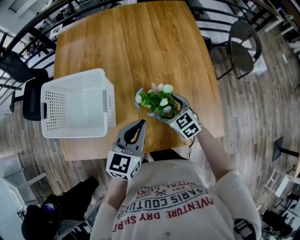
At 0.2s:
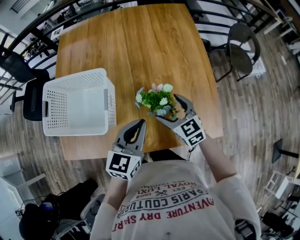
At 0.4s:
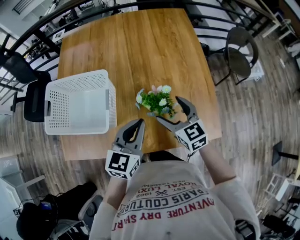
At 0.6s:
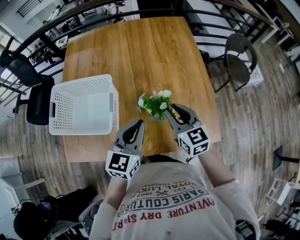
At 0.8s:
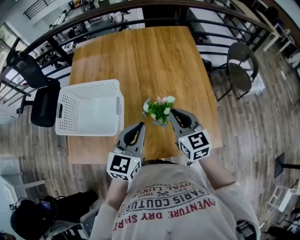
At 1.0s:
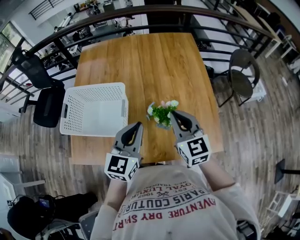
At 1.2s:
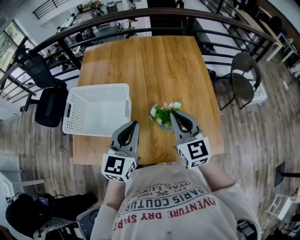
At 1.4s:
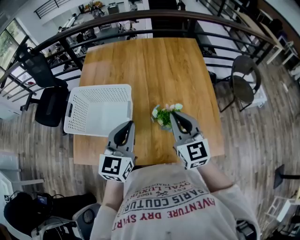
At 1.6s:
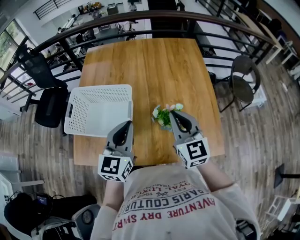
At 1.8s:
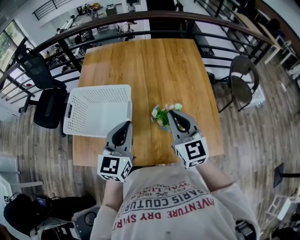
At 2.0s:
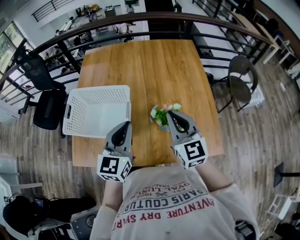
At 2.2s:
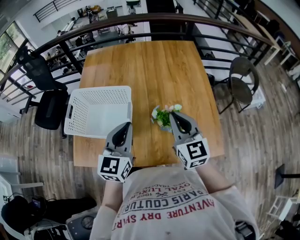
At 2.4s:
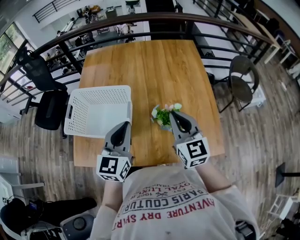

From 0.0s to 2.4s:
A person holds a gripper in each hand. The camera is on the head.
From 0.0s to 1.2s: The right gripper shifts some 25 cm upward, turns by approximately 30 degrees, and closes; the left gripper moves upward and to the left, some 15 cm.
From 1.2s to 2.4s: The grippers move only a little.

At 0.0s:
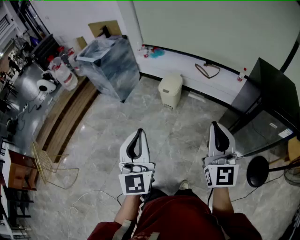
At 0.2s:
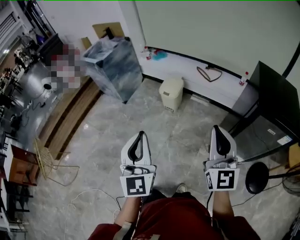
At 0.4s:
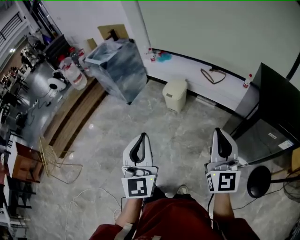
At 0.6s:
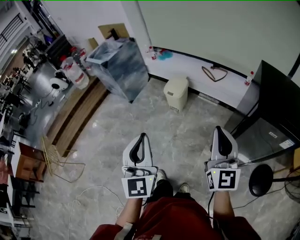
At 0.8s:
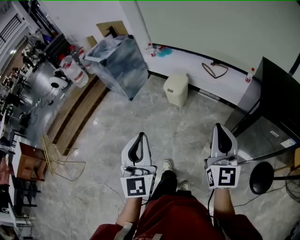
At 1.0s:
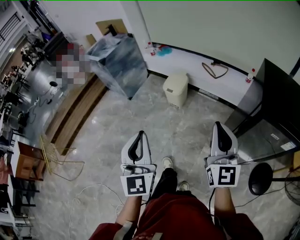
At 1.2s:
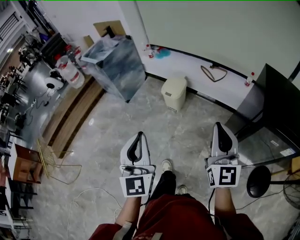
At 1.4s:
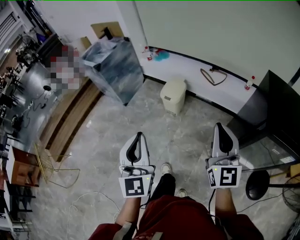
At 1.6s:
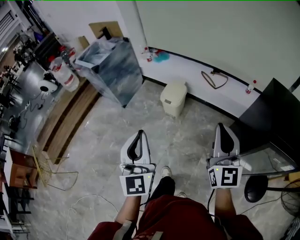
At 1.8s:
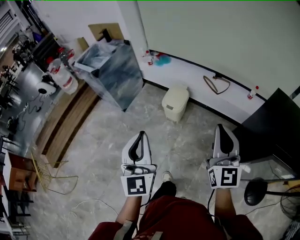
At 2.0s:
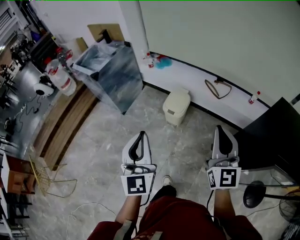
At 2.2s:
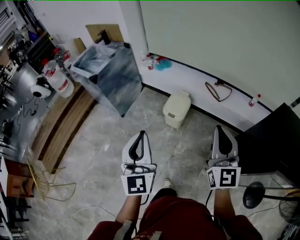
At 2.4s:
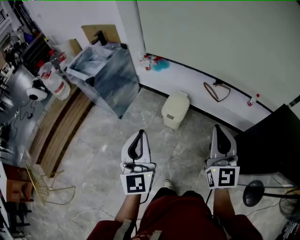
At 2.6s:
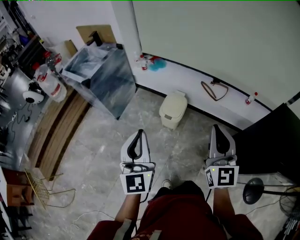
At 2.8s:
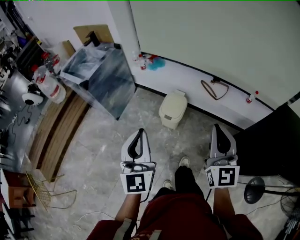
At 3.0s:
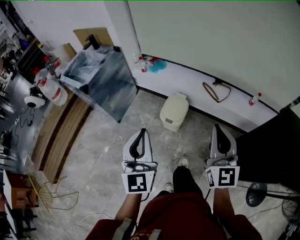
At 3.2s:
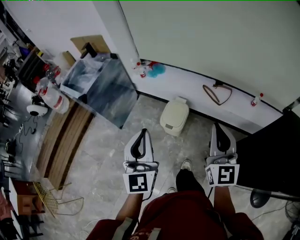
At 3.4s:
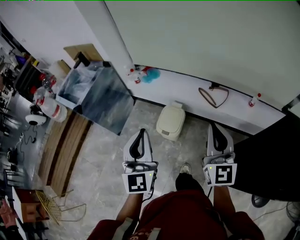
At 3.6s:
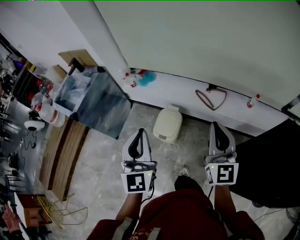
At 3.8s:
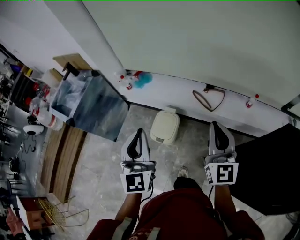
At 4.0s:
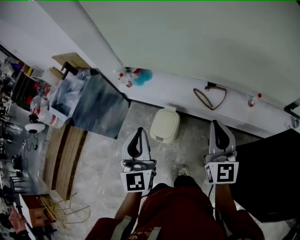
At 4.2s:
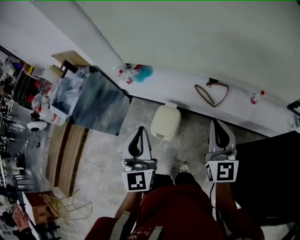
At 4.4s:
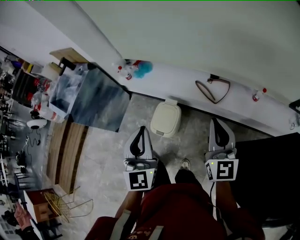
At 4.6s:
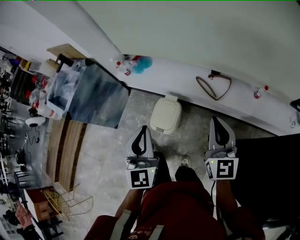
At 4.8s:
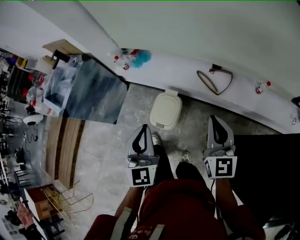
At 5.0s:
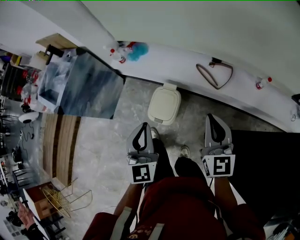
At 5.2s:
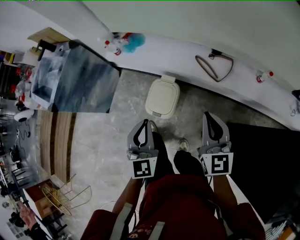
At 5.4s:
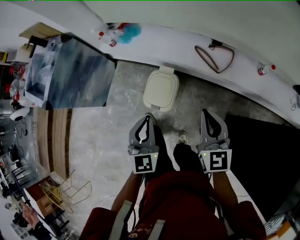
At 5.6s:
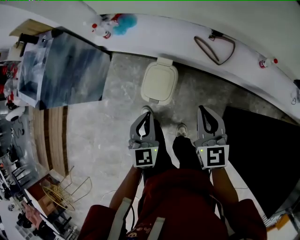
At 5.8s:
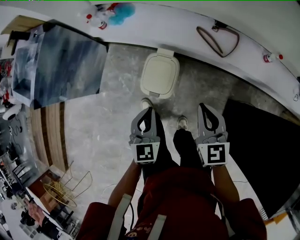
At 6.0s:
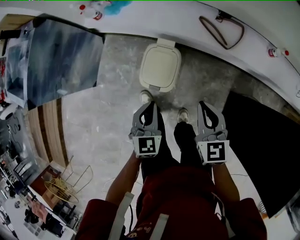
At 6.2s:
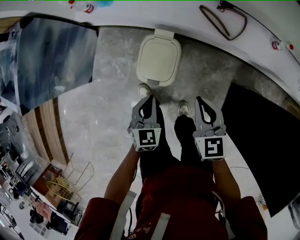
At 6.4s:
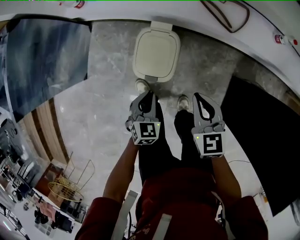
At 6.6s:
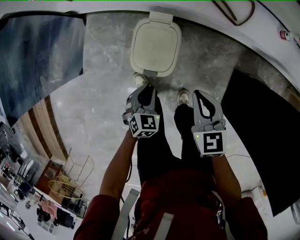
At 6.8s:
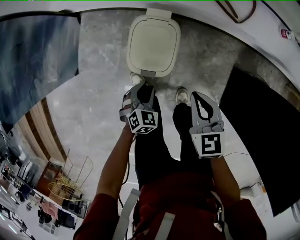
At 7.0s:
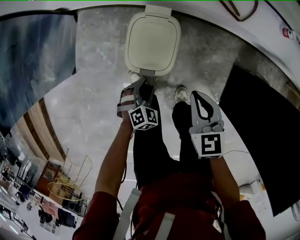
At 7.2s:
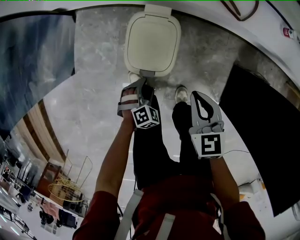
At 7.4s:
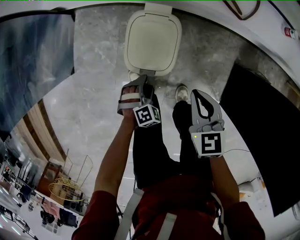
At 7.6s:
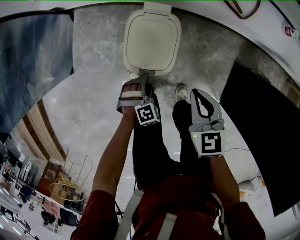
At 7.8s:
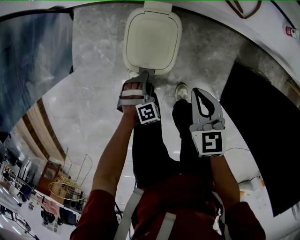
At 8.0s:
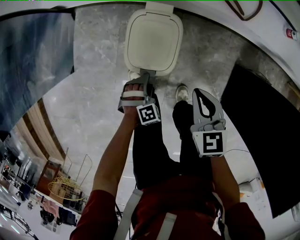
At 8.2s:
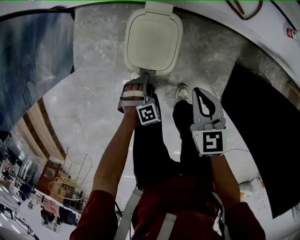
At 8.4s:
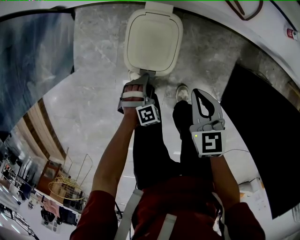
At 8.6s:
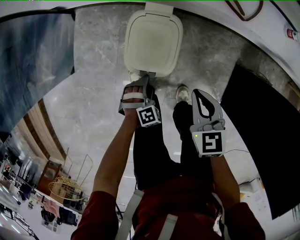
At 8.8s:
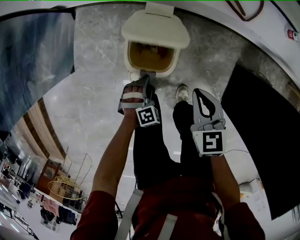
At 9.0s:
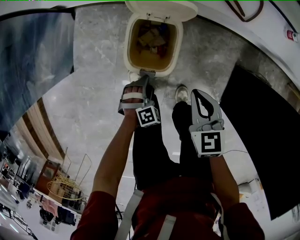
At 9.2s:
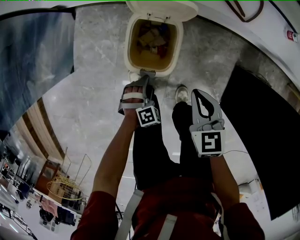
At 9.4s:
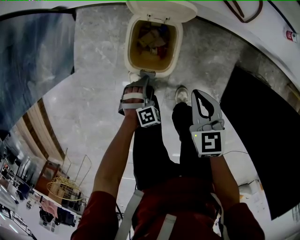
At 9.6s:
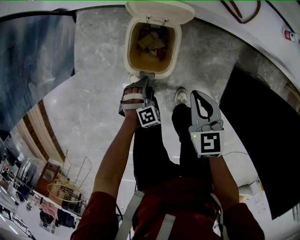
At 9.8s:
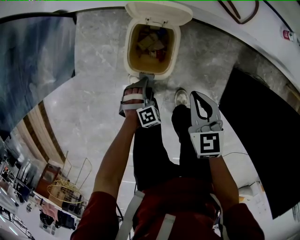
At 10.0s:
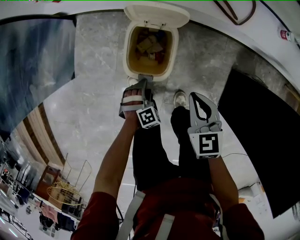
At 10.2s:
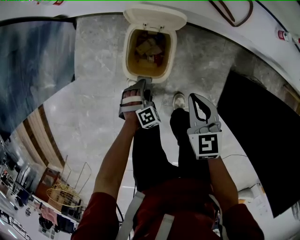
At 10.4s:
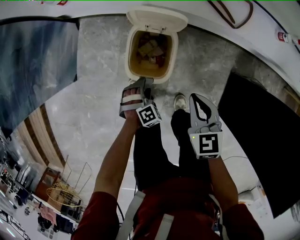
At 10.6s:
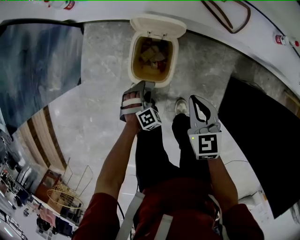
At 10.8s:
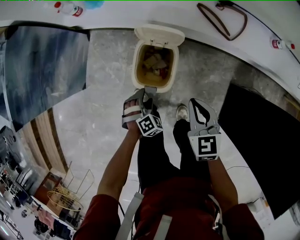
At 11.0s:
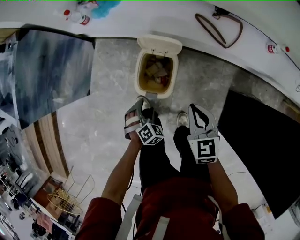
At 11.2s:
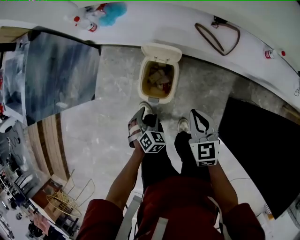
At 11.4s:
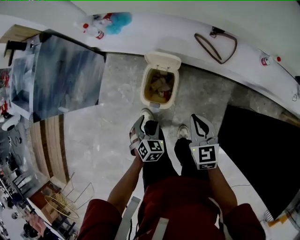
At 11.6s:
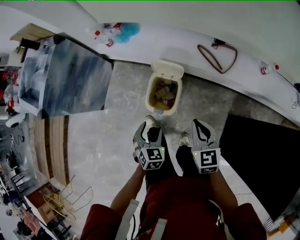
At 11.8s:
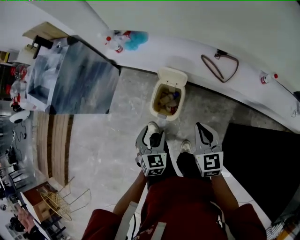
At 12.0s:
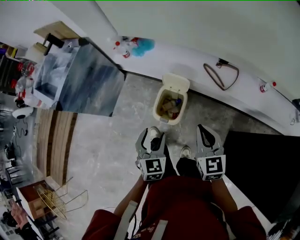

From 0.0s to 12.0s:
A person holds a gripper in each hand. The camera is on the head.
From 0.0s to 1.6s: The right gripper heads forward and to the right, covering some 15 cm, while the left gripper moves forward, approximately 15 cm.
From 1.6s to 3.0s: Both grippers travel together forward, roughly 25 cm.
From 3.0s to 4.4s: The grippers both shift forward and to the right by approximately 25 cm.
From 4.4s to 6.0s: The right gripper is displaced downward and to the left by approximately 30 cm, and turns by about 30 degrees. Meanwhile the left gripper travels downward by some 35 cm, and tips its fingers downward by roughly 30 degrees.
From 6.0s to 7.6s: The right gripper shifts some 15 cm downward. Meanwhile the left gripper moves downward, some 30 cm, rolls clockwise, seen from behind, by about 50 degrees, and opens its fingers.
From 7.6s to 10.4s: The grippers stay close to where they were, moving slightly.
From 10.4s to 12.0s: The right gripper moves upward, approximately 25 cm, and swivels about 20 degrees. Meanwhile the left gripper moves upward, roughly 40 cm, and twists roughly 50 degrees counterclockwise, seen from behind.

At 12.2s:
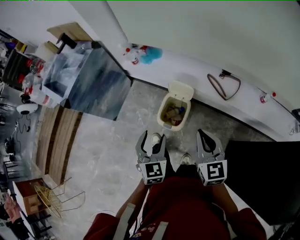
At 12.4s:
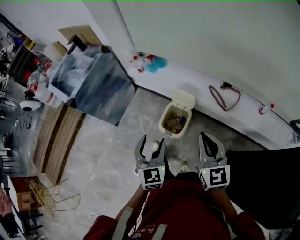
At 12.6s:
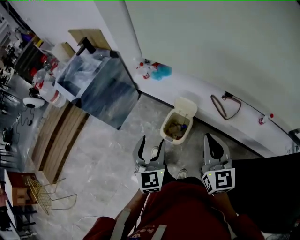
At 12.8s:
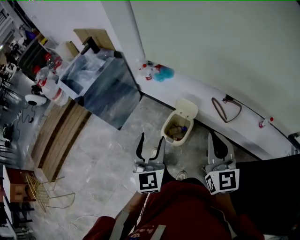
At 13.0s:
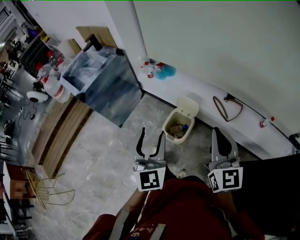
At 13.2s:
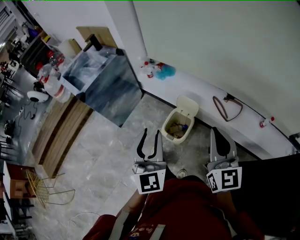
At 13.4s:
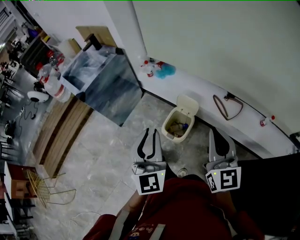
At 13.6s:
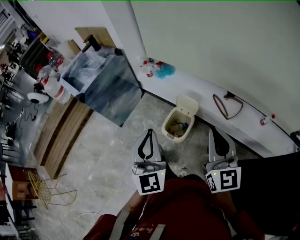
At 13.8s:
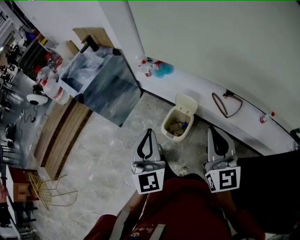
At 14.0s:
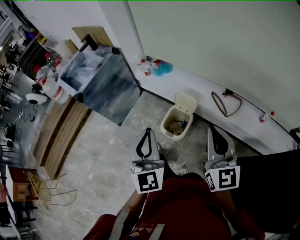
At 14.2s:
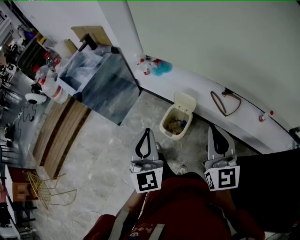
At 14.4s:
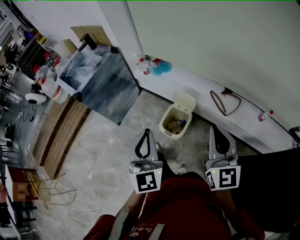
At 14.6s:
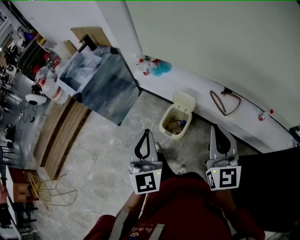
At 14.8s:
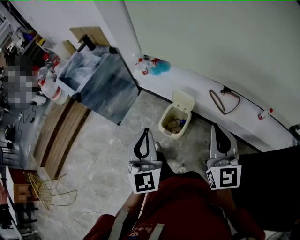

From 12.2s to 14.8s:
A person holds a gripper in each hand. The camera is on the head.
From 12.2s to 13.4s: The two grippers go roughly 20 cm upward. The left gripper rotates roughly 30 degrees, and closes.
From 13.4s to 14.8s: The grippers move only a little.

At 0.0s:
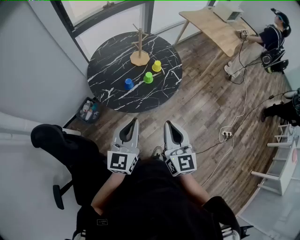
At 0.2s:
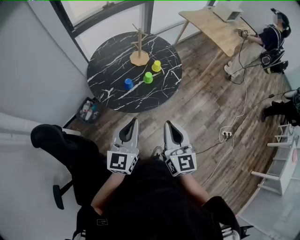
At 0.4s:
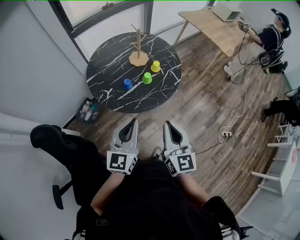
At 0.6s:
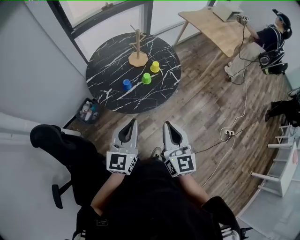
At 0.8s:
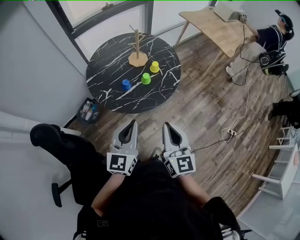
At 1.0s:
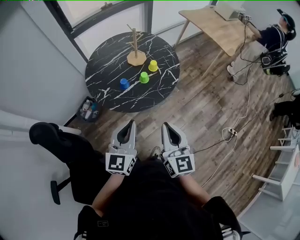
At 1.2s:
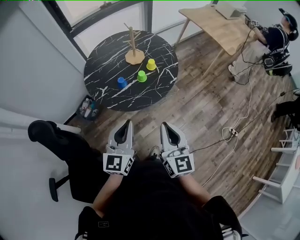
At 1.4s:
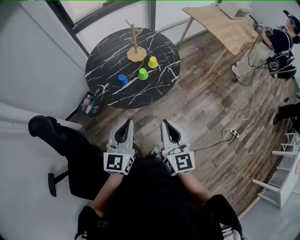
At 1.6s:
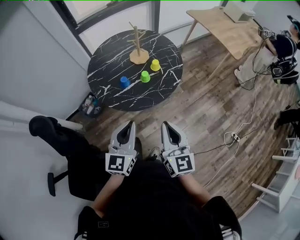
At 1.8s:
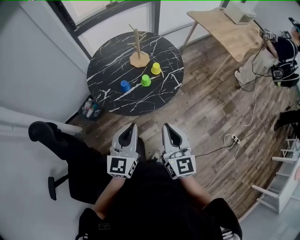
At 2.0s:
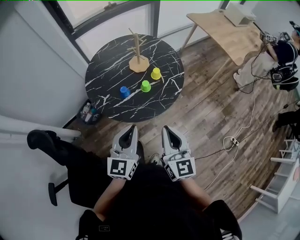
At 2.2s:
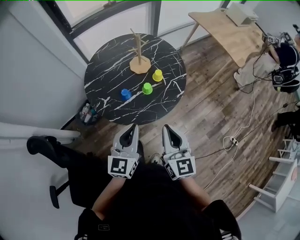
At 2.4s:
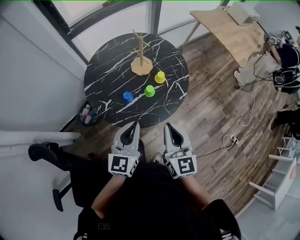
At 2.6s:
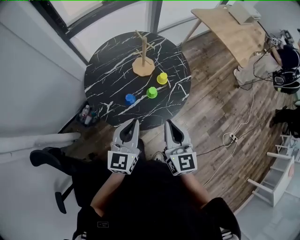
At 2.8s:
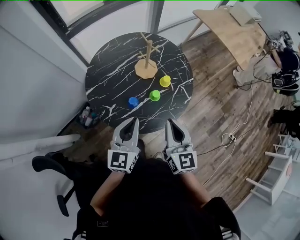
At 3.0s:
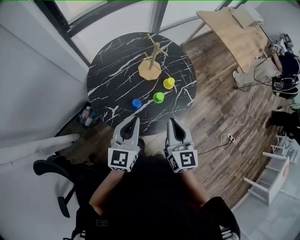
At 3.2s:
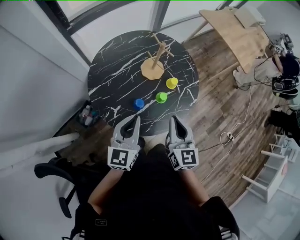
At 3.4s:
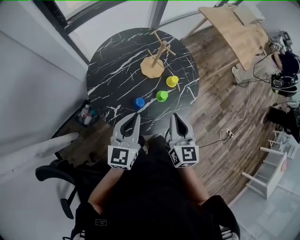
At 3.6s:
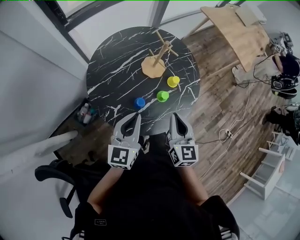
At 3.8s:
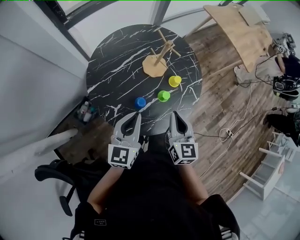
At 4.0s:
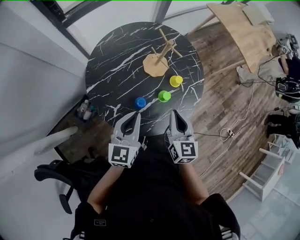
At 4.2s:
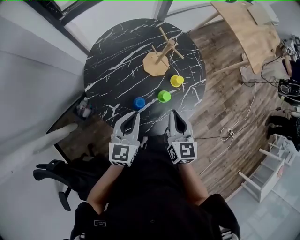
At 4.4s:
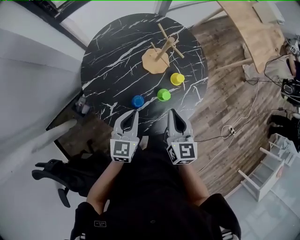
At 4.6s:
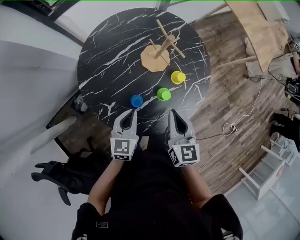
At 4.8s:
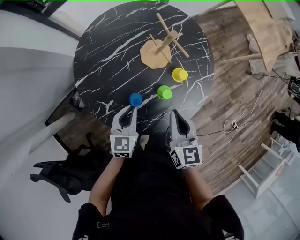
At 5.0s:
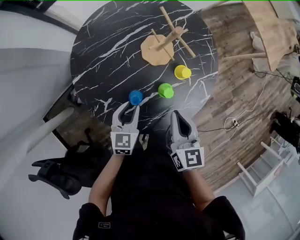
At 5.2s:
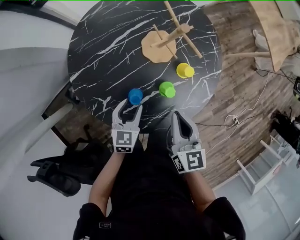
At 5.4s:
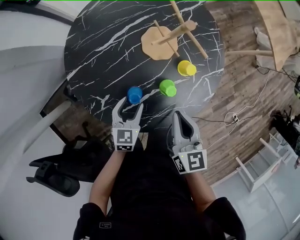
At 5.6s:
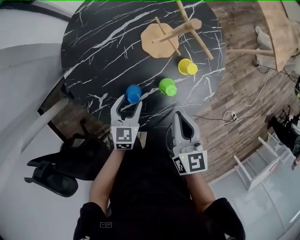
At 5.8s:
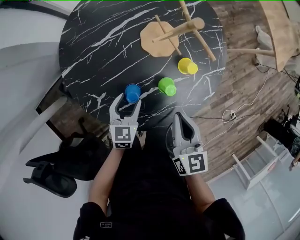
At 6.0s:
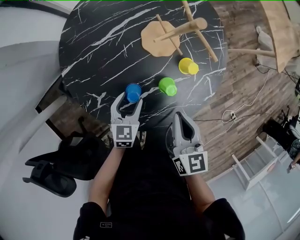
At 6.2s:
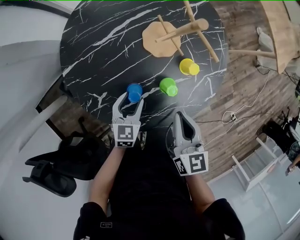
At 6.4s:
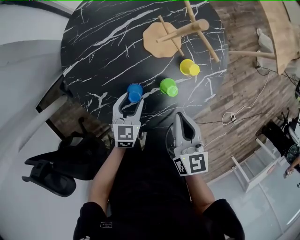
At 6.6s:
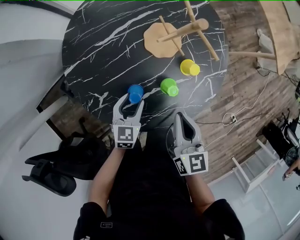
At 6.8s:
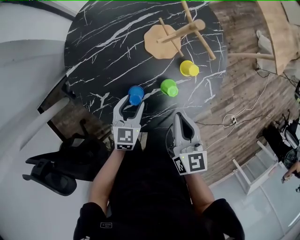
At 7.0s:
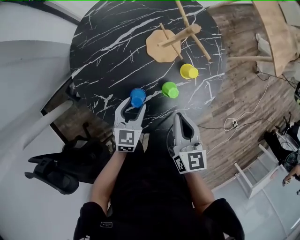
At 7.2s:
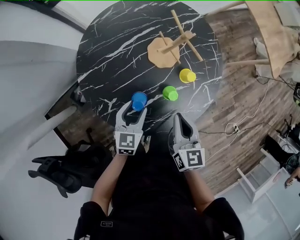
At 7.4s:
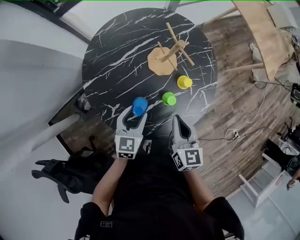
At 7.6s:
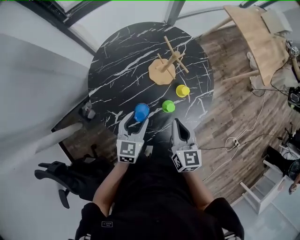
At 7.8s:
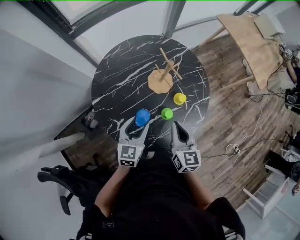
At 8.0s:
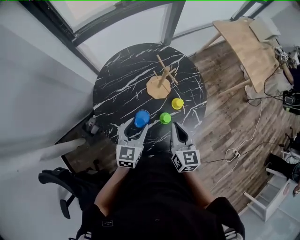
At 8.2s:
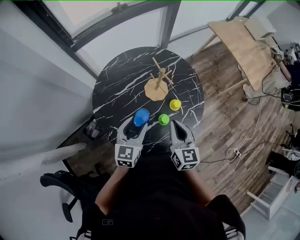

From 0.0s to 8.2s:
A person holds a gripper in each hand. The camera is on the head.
From 0.0s to 1.6s: The two grippers go roughly 10 cm to the right.
From 1.6s to 3.2s: The grippers both shift forward and to the left by about 30 cm.
From 3.2s to 5.0s: The left gripper shifts some 25 cm downward, rotates some 20 degrees, and opens up, while the right gripper moves downward and forward, roughly 15 cm.
From 5.0s to 6.6s: The left gripper moves downward, roughly 5 cm, and opens its fingers.
From 6.6s to 8.2s: The left gripper travels upward by approximately 25 cm. The right gripper travels upward by about 10 cm.
